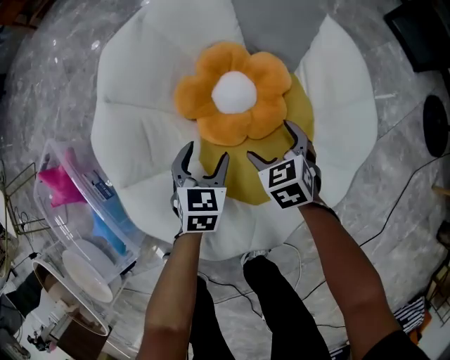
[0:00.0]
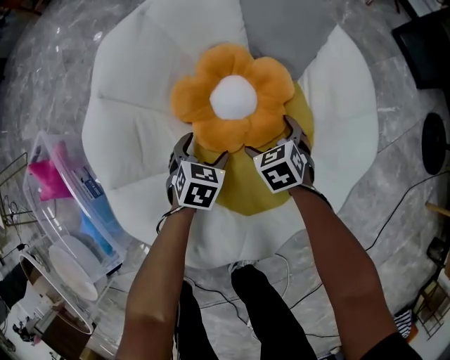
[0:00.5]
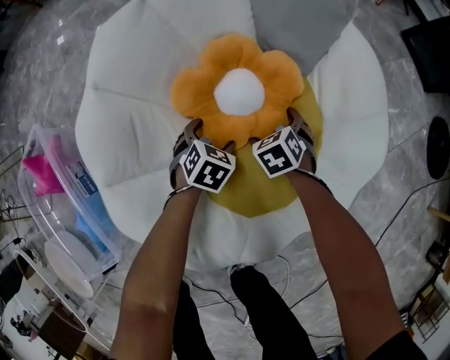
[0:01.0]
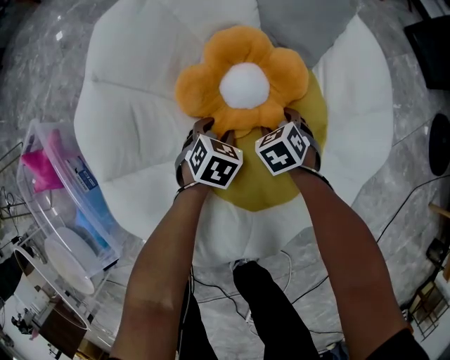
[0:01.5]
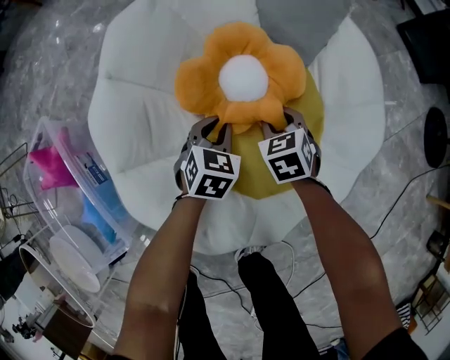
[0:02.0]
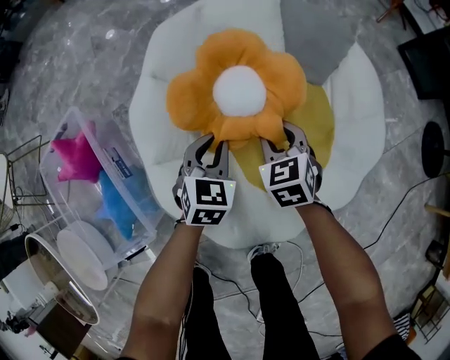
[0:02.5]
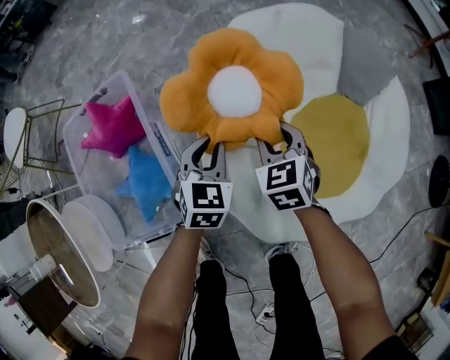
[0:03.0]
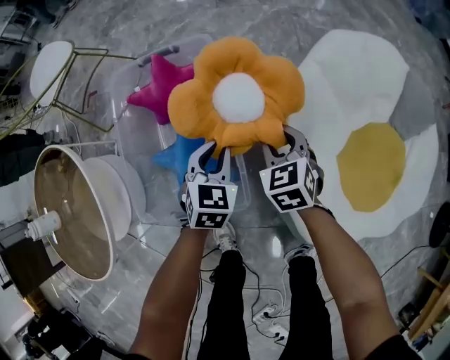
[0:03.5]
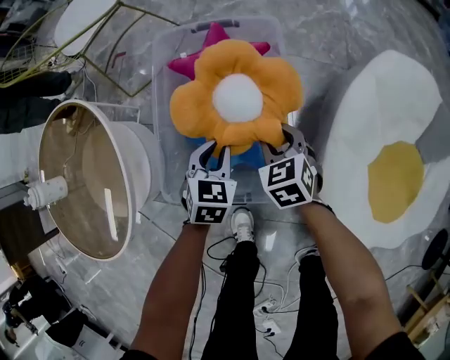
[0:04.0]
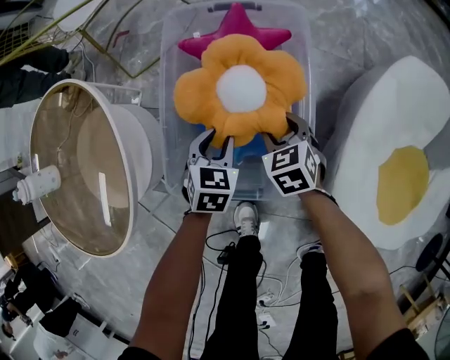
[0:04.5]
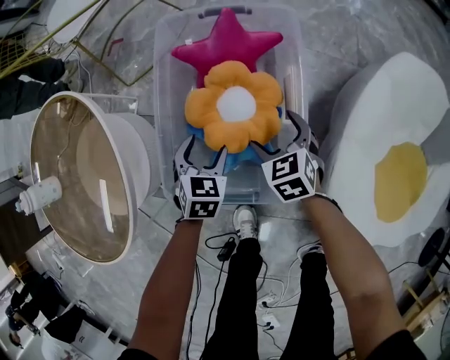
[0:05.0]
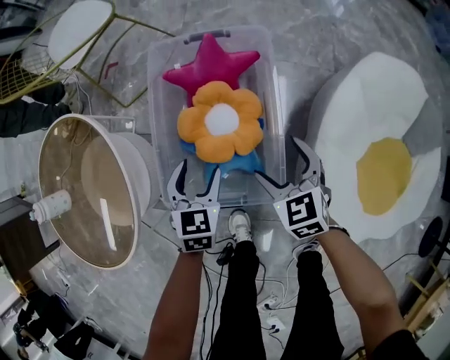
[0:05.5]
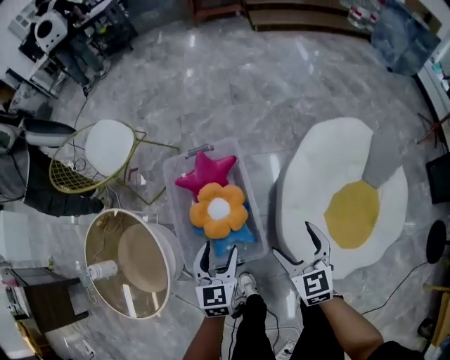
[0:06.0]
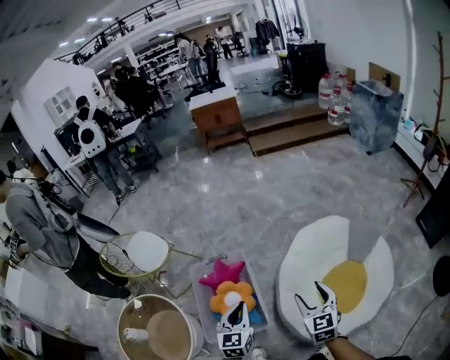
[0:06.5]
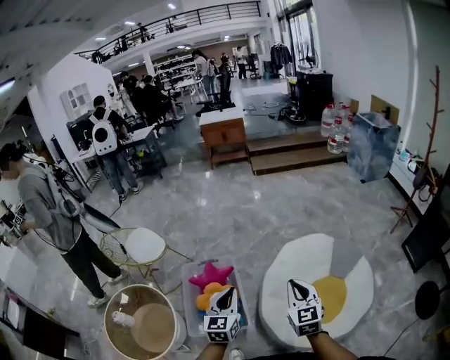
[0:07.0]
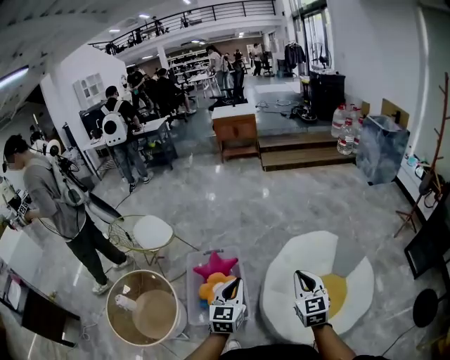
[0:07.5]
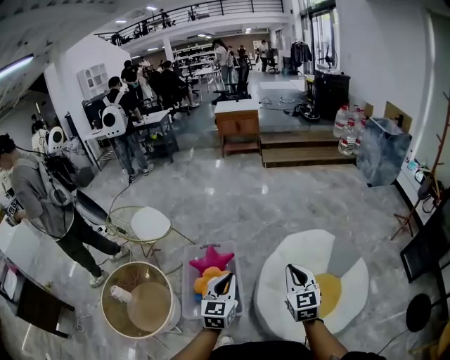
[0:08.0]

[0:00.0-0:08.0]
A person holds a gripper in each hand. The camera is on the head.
0:00.0 to 0:02.0: The left gripper goes downward and returns, about 15 cm each way, and closes its fingers. Meanwhile the right gripper travels downward and back again, roughly 15 cm each way, and closes its fingers.
0:02.0 to 0:04.0: The two grippers travel together, approximately 70 cm. The right gripper swivels about 40 degrees; the left gripper rotates some 40 degrees.
0:04.0 to 0:06.0: The grippers both shift upward by some 35 cm. The right gripper rotates roughly 20 degrees, and opens up, while the left gripper opens its fingers.
0:06.0 to 0:08.0: Both grippers travel together upward and backward, roughly 40 cm. The right gripper closes its fingers; the left gripper swivels some 20 degrees, and closes up.

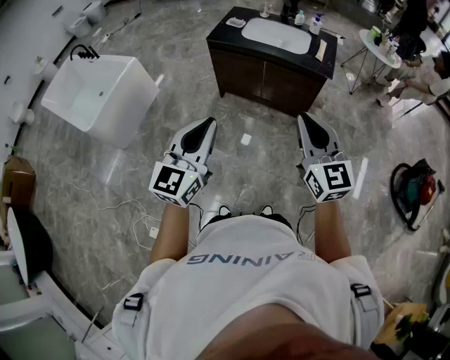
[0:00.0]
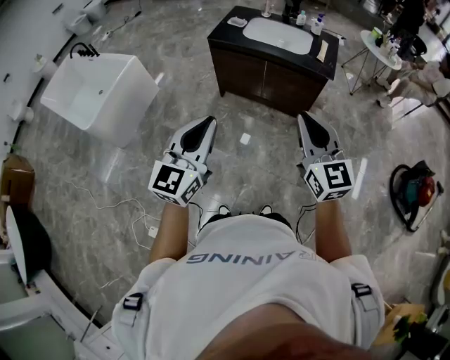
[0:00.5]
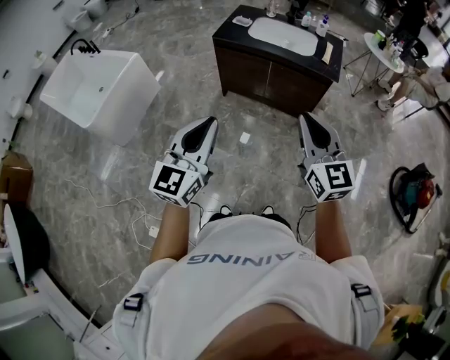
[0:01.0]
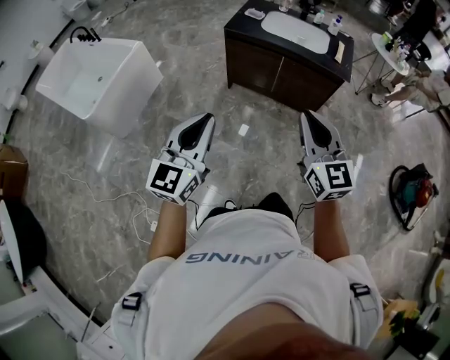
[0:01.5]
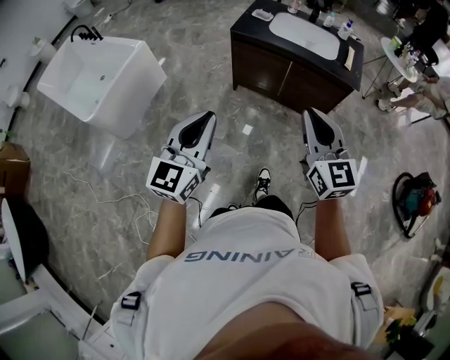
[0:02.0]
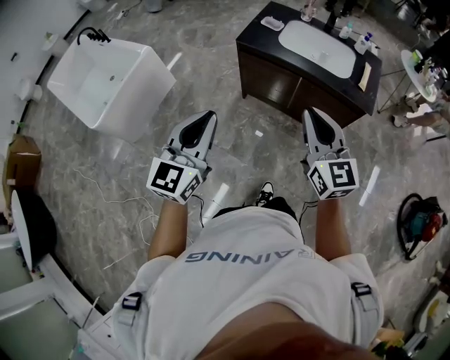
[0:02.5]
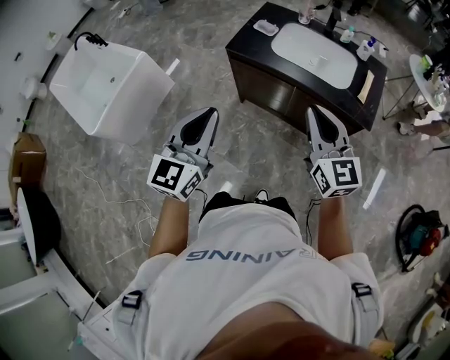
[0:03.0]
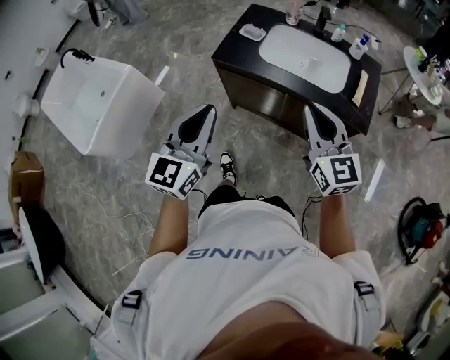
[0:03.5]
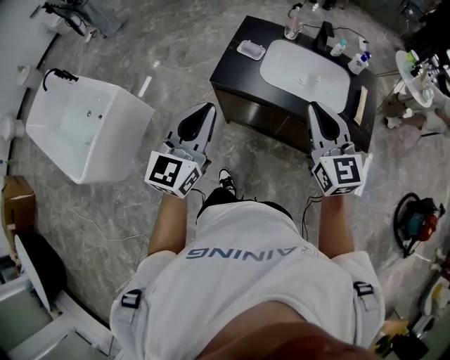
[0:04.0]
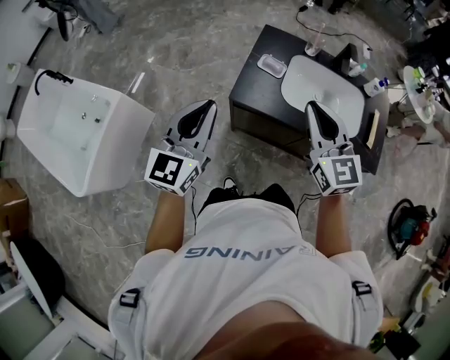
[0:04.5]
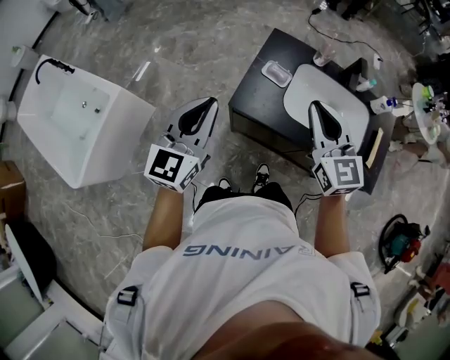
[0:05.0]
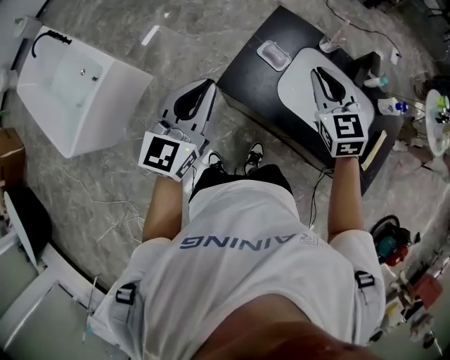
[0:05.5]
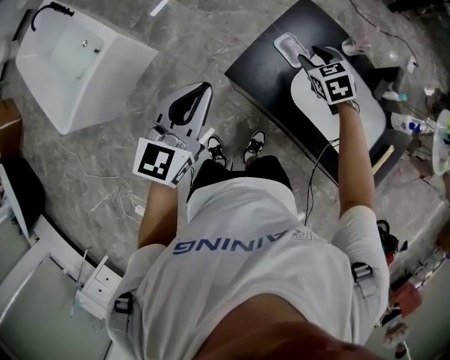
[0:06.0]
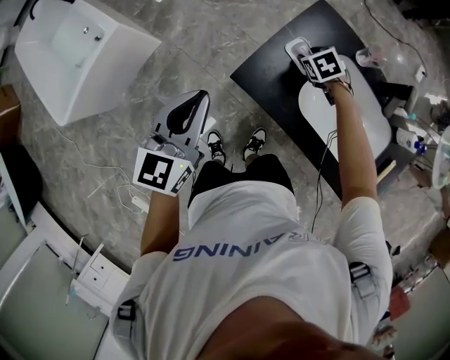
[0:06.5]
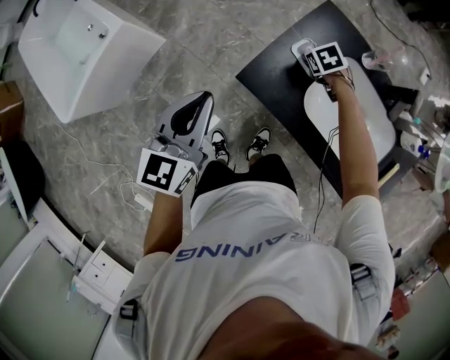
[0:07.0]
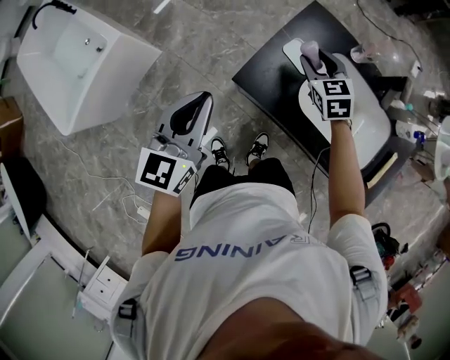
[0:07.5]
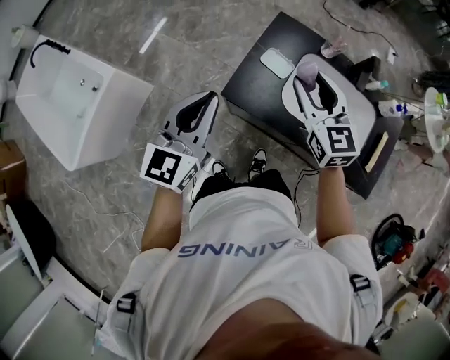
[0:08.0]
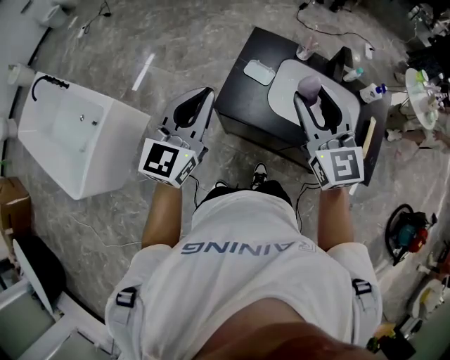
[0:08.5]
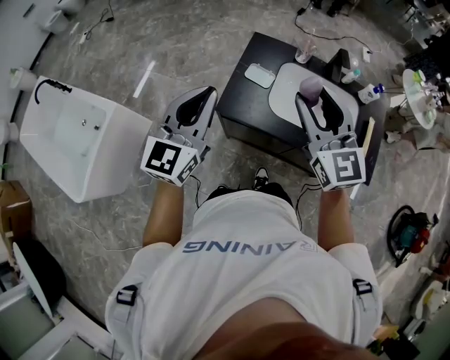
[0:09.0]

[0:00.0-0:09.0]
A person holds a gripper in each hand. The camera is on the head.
0:00.0 to 0:02.0: Both grippers travel together to the left and forward, roughly 15 cm.
0:02.0 to 0:04.5: The pair of grippers is taken forward, approximately 50 cm.
0:04.5 to 0:07.0: The right gripper is displaced downward by some 40 cm, tips its fingers downward by some 60 degrees, and opens its fingers; the left gripper shifts roughly 10 cm downward, and swivels approximately 30 degrees.
0:07.0 to 0:09.0: The left gripper shifts roughly 15 cm upward, and swivels approximately 30 degrees; the right gripper moves upward and backward, some 50 cm, and angles its fingers upward, by roughly 70 degrees.

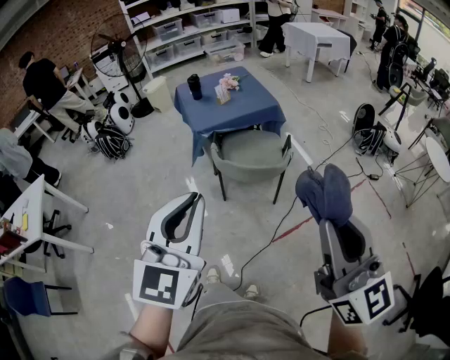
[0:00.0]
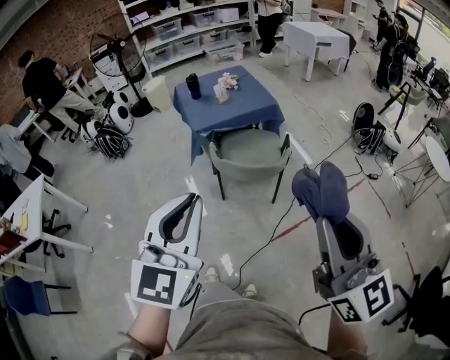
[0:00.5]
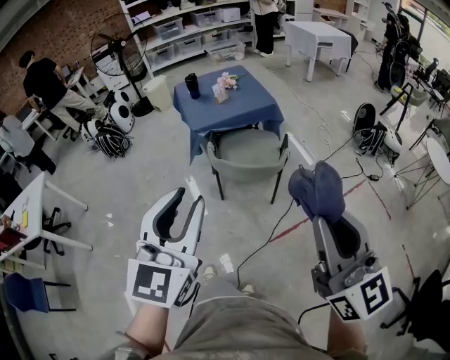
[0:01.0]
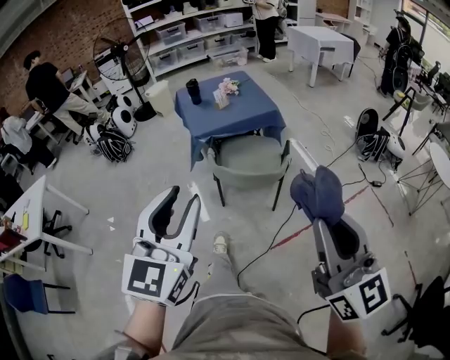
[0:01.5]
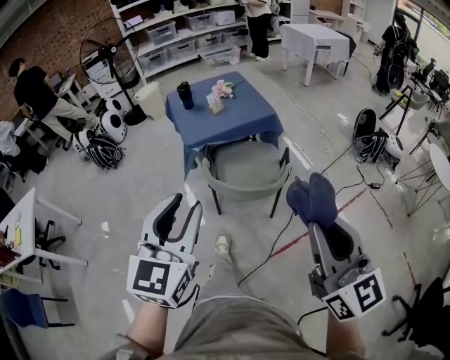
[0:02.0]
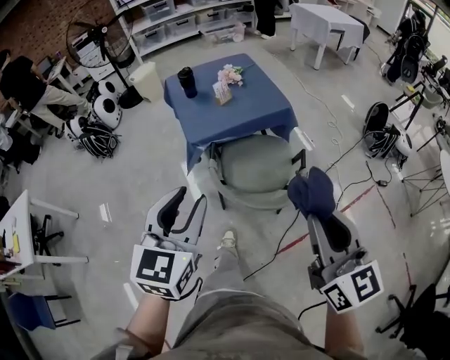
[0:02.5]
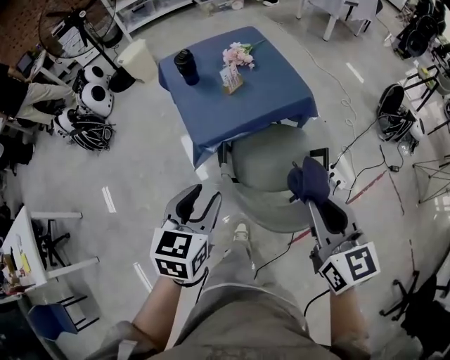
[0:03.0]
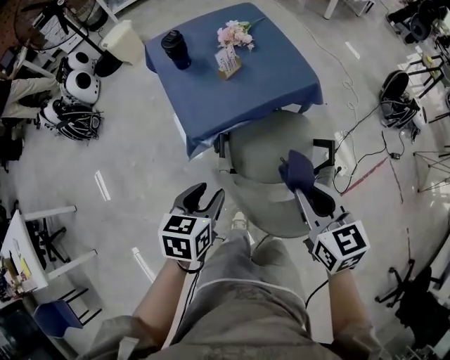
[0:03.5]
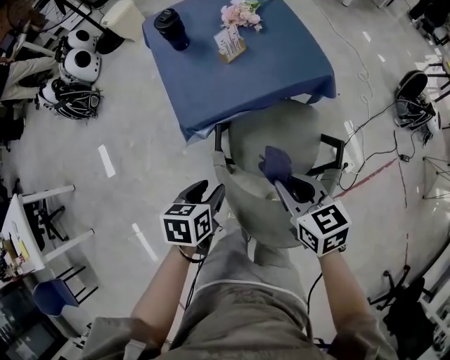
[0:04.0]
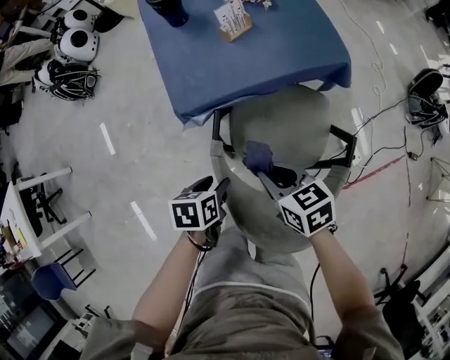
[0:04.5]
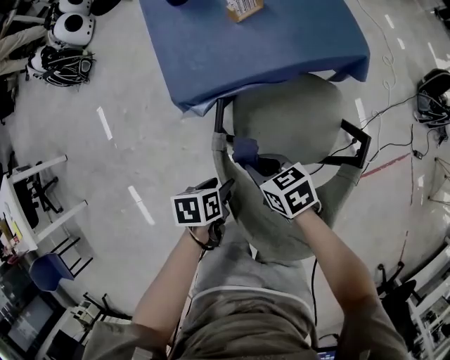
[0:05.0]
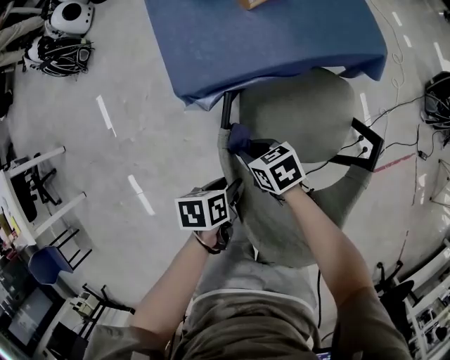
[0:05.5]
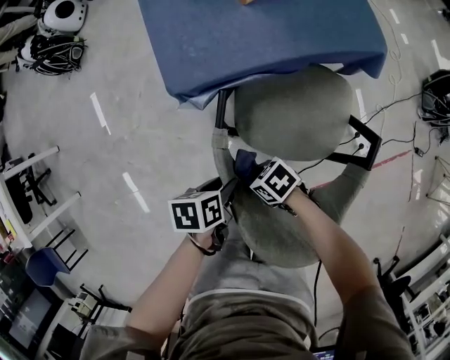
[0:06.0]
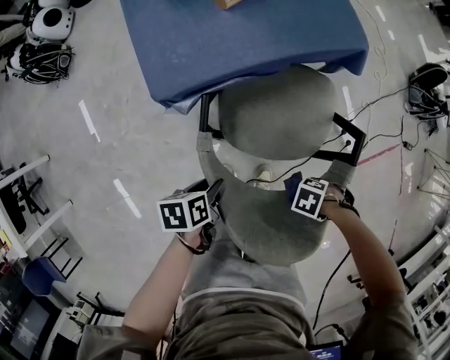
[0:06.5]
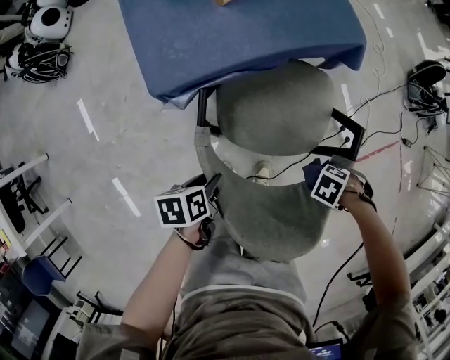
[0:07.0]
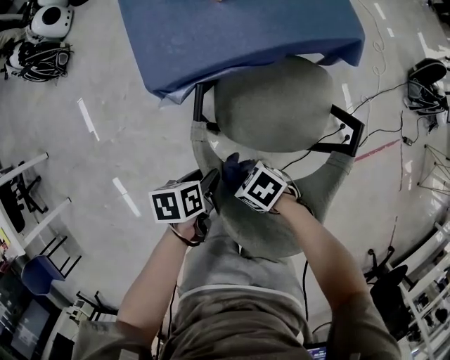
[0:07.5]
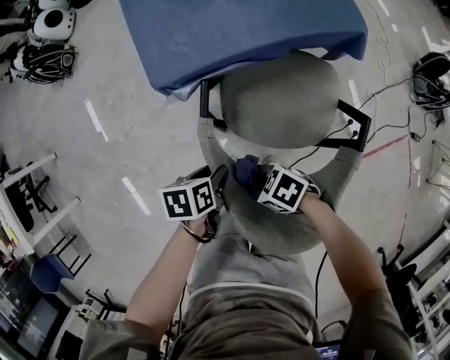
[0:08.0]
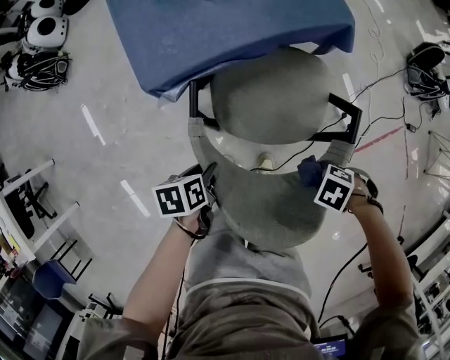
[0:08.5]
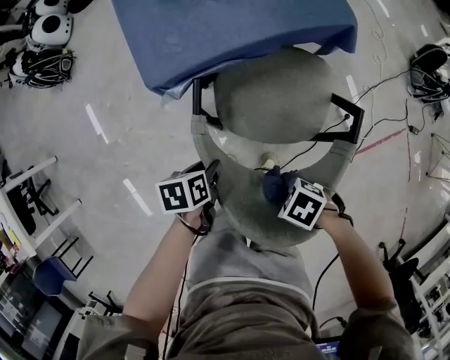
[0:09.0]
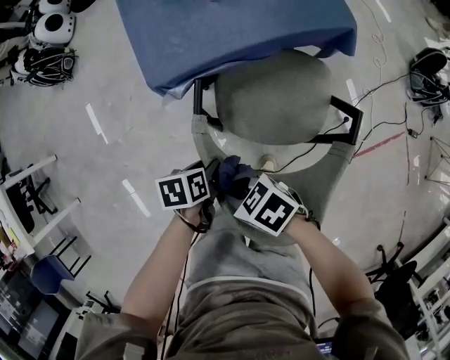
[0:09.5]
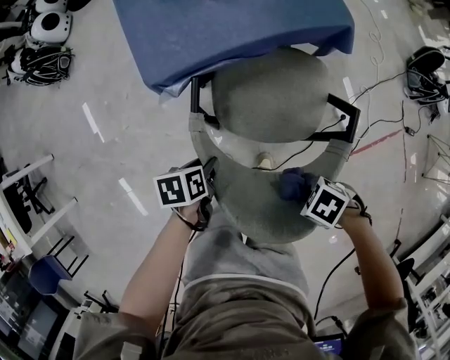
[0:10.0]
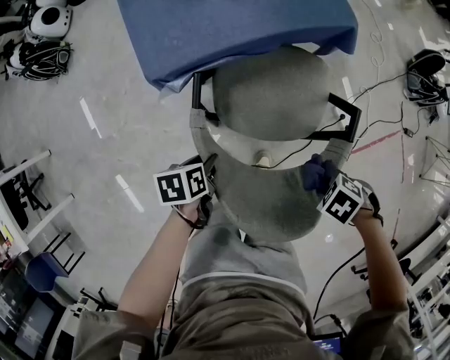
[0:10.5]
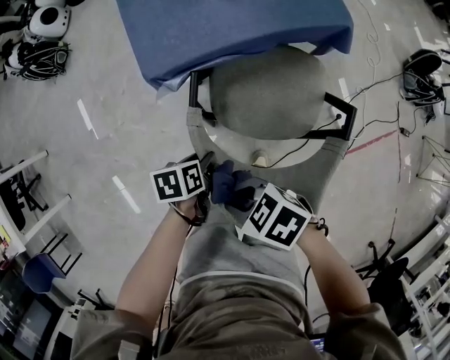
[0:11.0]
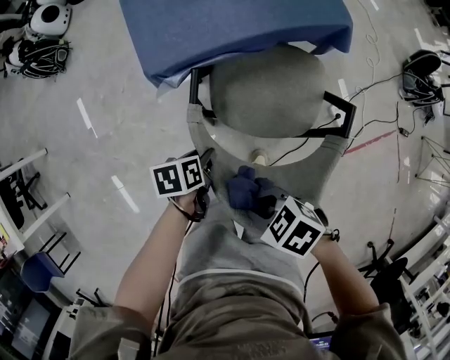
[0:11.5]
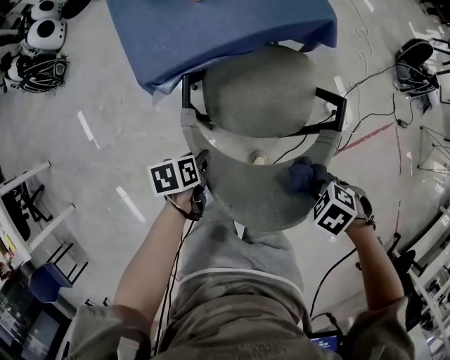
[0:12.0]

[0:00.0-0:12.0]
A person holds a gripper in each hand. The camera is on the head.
0:00.0 to 0:02.0: Both grippers travel together forward and downward, approximately 15 cm. The left gripper opens.
0:02.0 to 0:04.0: The right gripper heads forward and downward, covering approximately 50 cm, and points its fingers some 40 degrees further downward; the left gripper heads downward and forward, covering roughly 50 cm, and points its fingers about 50 degrees further downward.
0:04.0 to 0:06.0: The right gripper travels downward by roughly 30 cm, and swivels approximately 50 degrees. Meanwhile the left gripper travels downward by roughly 15 cm, and rotates about 30 degrees.
0:08.0 to 0:10.0: The right gripper shifts by about 15 cm, and turns by about 20 degrees.
0:10.0 to 0:12.0: The right gripper goes upward and returns, roughly 10 cm each way.
